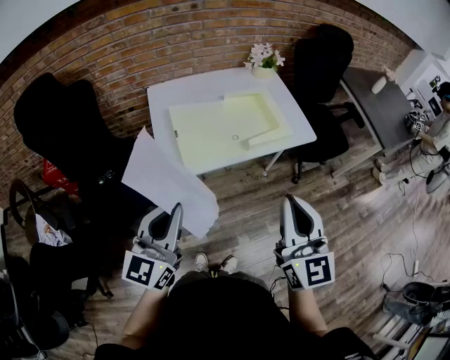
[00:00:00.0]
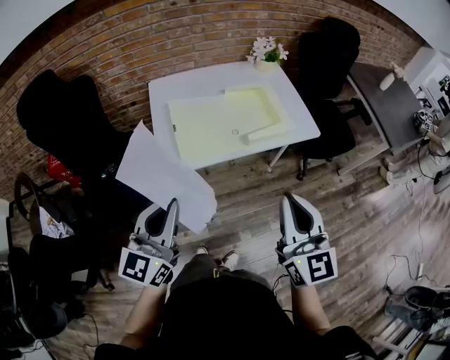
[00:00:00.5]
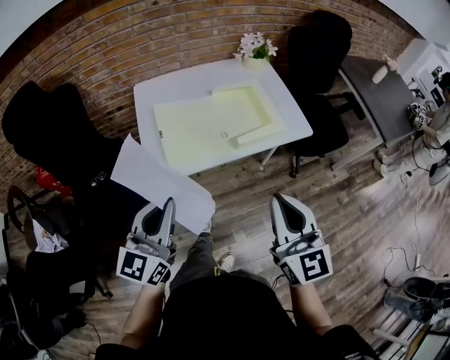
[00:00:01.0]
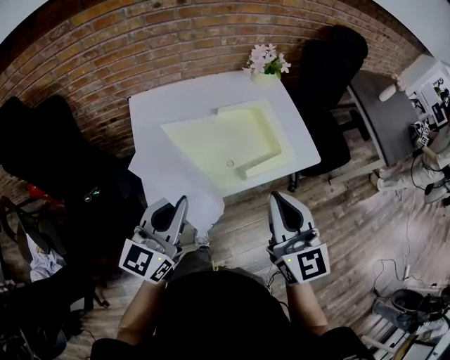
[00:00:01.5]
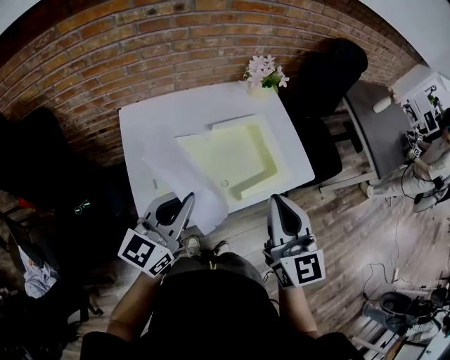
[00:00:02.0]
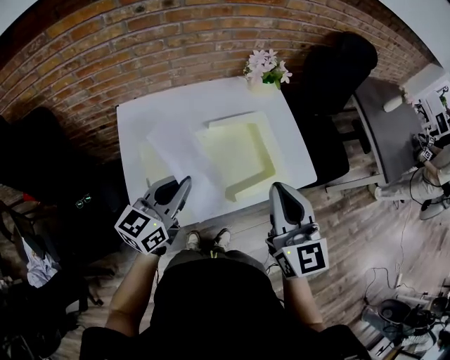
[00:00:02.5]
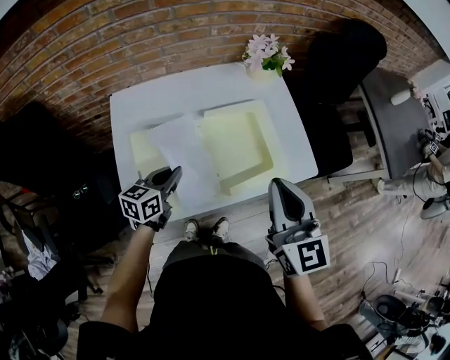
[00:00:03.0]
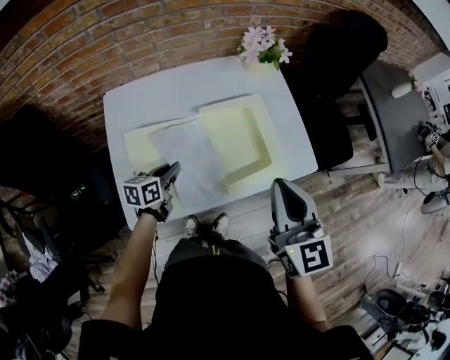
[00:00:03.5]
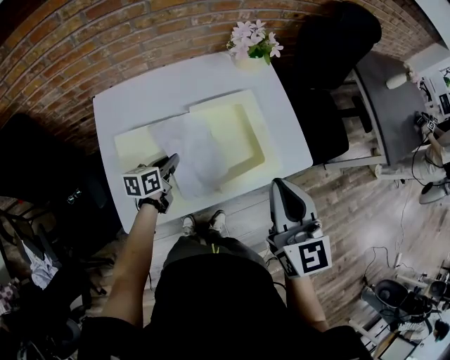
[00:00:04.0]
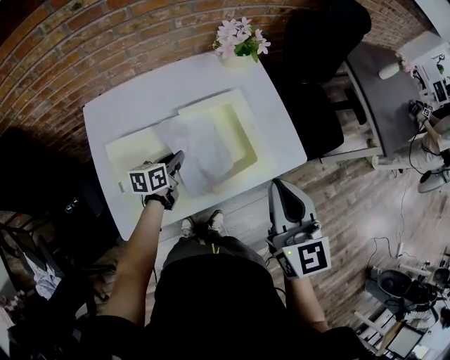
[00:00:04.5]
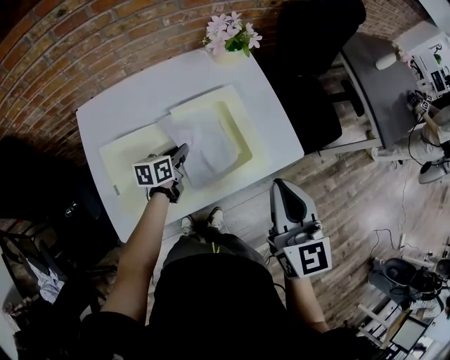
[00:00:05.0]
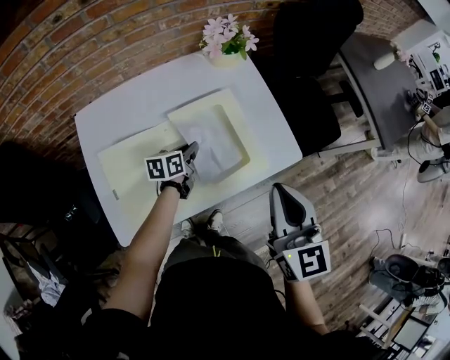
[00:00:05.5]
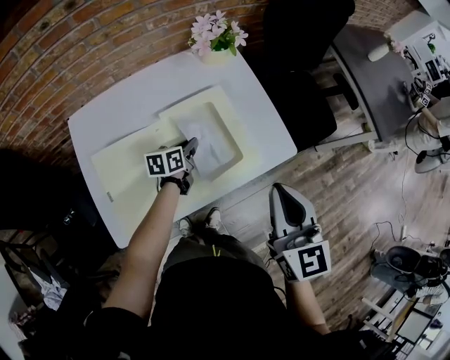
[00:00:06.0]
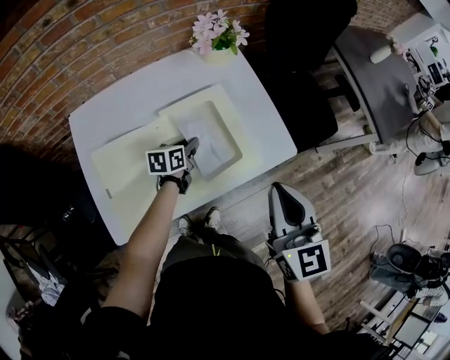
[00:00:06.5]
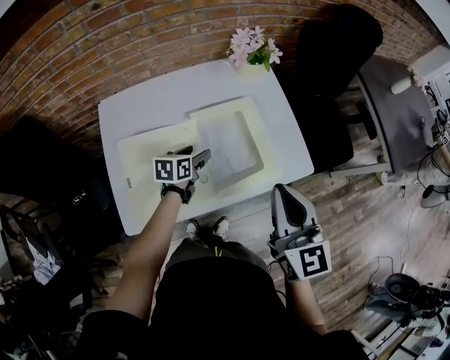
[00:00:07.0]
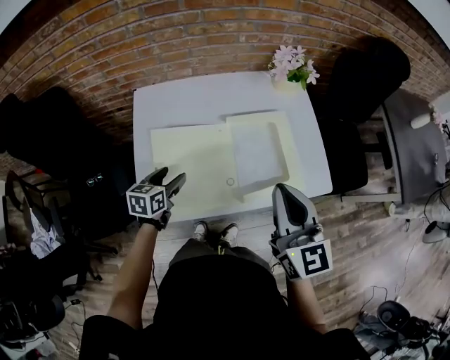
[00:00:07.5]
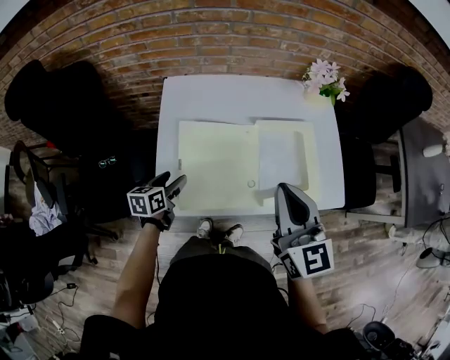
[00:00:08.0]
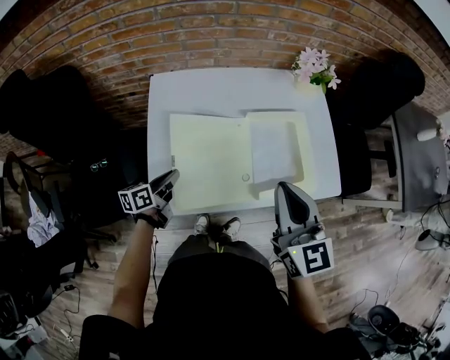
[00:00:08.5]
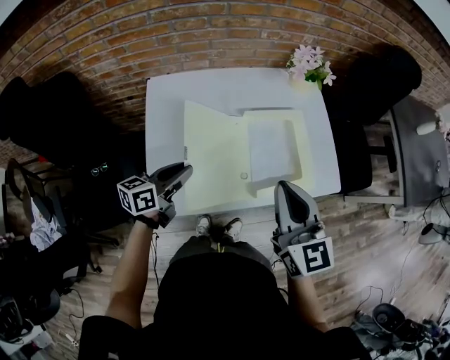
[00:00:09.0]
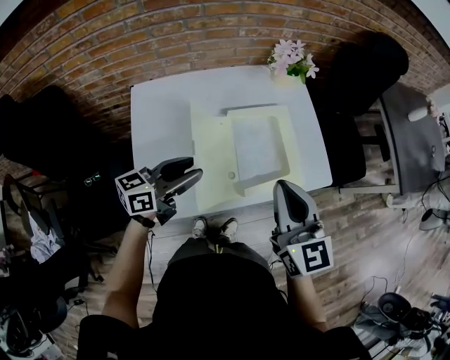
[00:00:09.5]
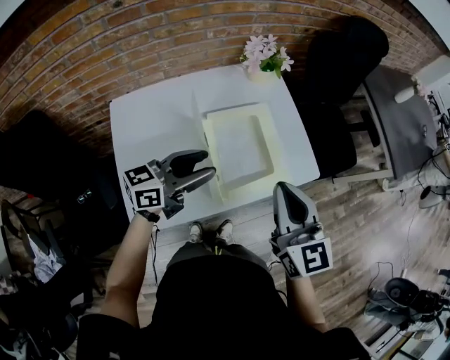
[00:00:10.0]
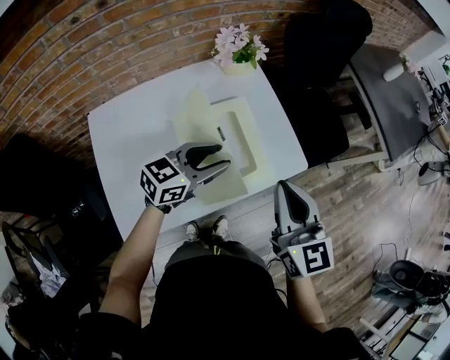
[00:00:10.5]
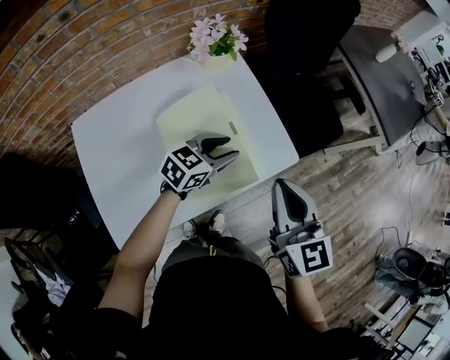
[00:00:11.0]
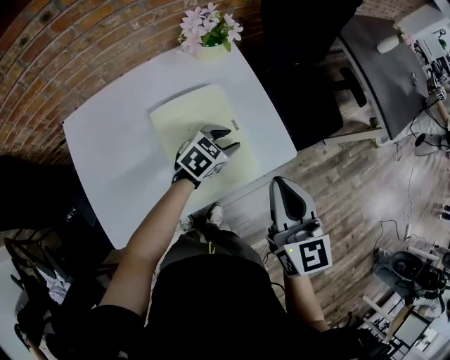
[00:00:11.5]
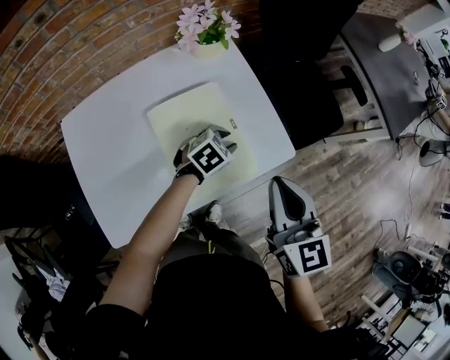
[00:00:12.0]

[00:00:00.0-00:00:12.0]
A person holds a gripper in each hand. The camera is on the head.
00:00:00.0 to 00:00:02.0: Both grippers travel together forward, roughly 30 cm.
00:00:02.0 to 00:00:04.0: The left gripper shifts roughly 30 cm downward and forward, and tips its fingers downward by roughly 30 degrees. The right gripper travels forward and to the right by approximately 15 cm.
00:00:04.0 to 00:00:06.0: The left gripper moves to the right and forward, roughly 15 cm. Meanwhile the right gripper goes roughly 5 cm to the right.
00:00:06.0 to 00:00:08.0: The right gripper changes place by approximately 20 cm, and changes its angle by approximately 30 degrees; the left gripper changes place by some 35 cm, rotates roughly 30 degrees, and opens its fingers.
00:00:08.0 to 00:00:10.0: The right gripper changes place by roughly 10 cm, while the left gripper moves about 35 cm, angles its fingers upward, by some 30 degrees, and closes, then opens again.
00:00:10.0 to 00:00:12.0: The left gripper heads downward, forward and to the right, covering about 35 cm, and tips its fingers downward by roughly 50 degrees, while the right gripper is displaced to the right, forward and downward by roughly 15 cm.

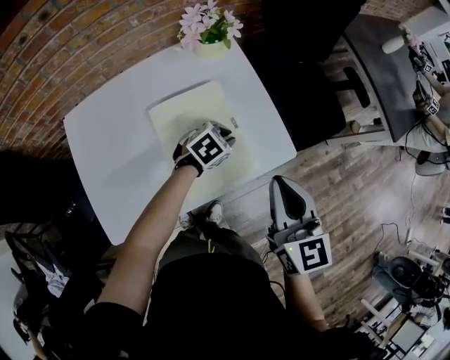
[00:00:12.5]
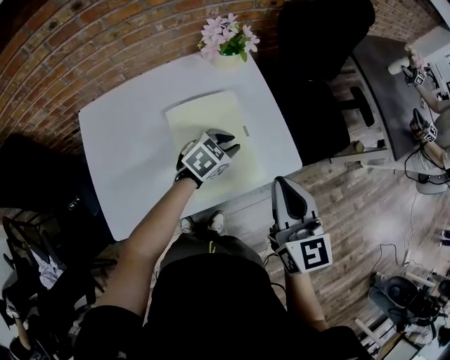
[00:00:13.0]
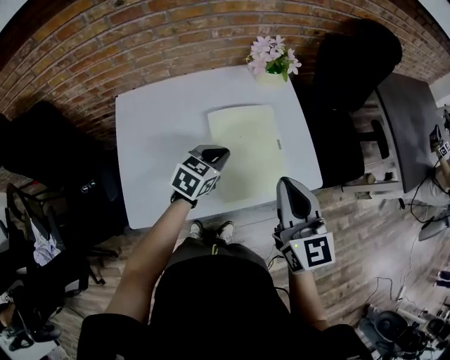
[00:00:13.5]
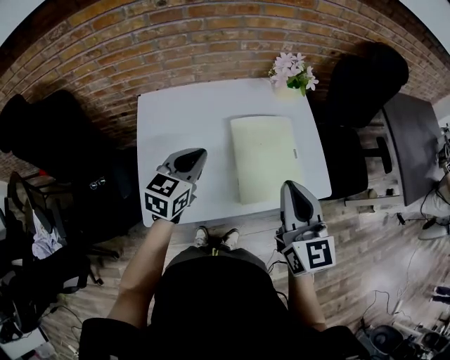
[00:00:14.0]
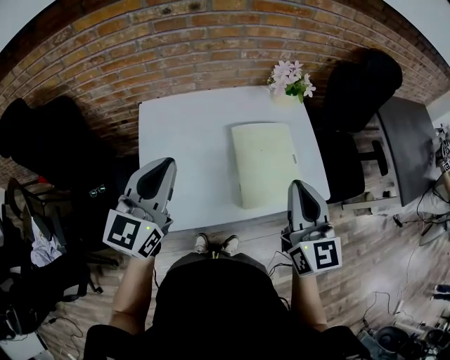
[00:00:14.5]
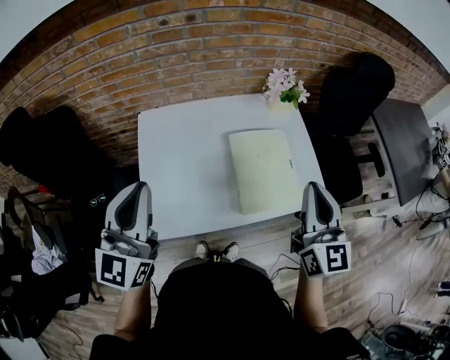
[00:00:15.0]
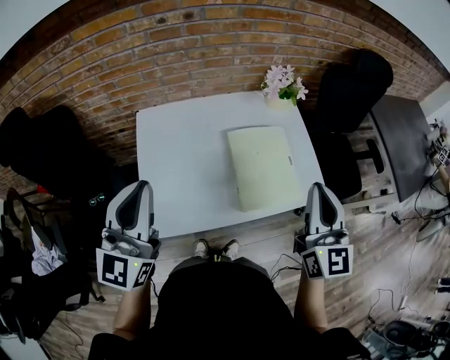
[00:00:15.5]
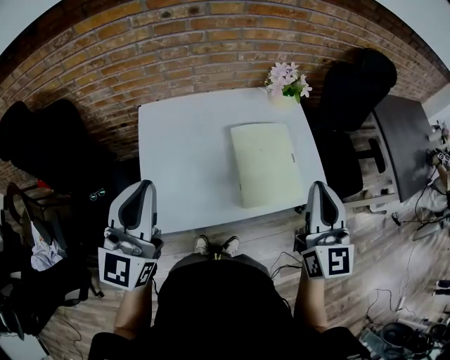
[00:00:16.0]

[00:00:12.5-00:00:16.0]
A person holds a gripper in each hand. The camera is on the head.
00:00:12.5 to 00:00:14.5: The right gripper changes place by approximately 20 cm; the left gripper ends up some 50 cm from where it was, and points its fingers about 50 degrees further upward.
00:00:14.5 to 00:00:16.0: The right gripper ends up some 5 cm from where it was, while the left gripper shifts approximately 5 cm backward.

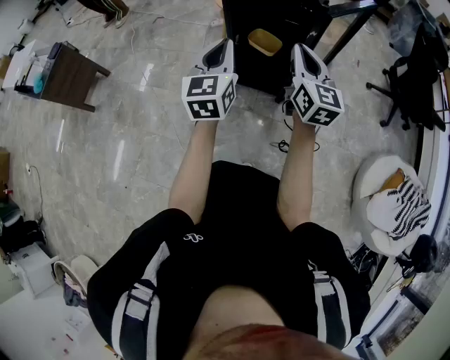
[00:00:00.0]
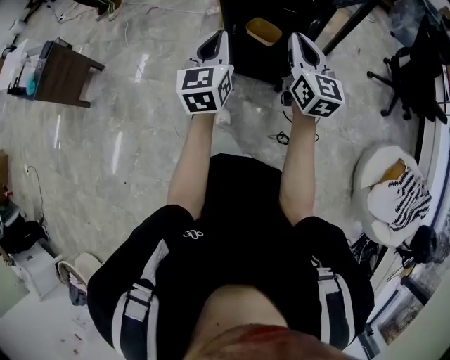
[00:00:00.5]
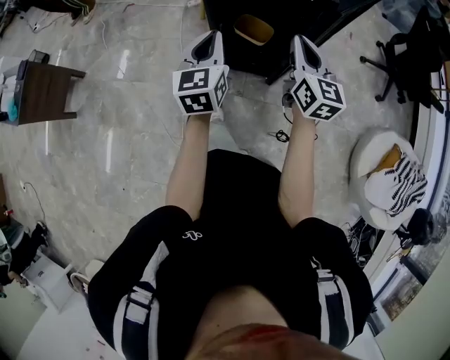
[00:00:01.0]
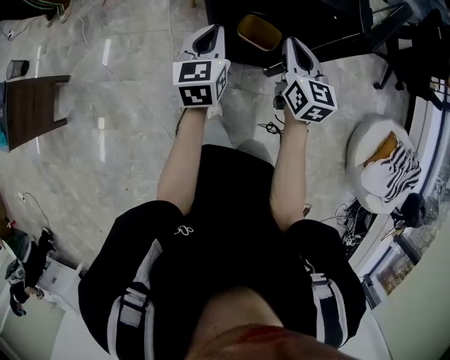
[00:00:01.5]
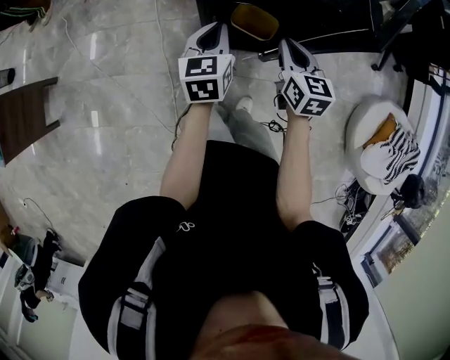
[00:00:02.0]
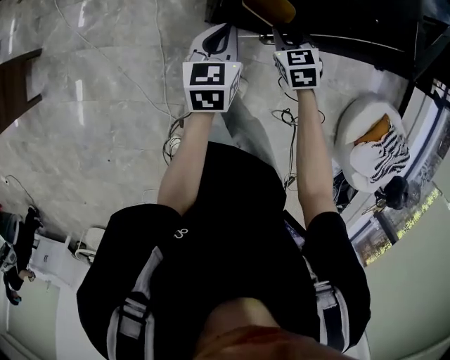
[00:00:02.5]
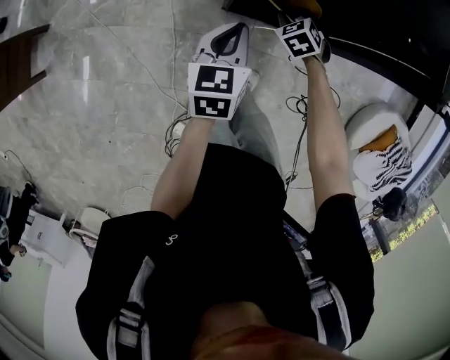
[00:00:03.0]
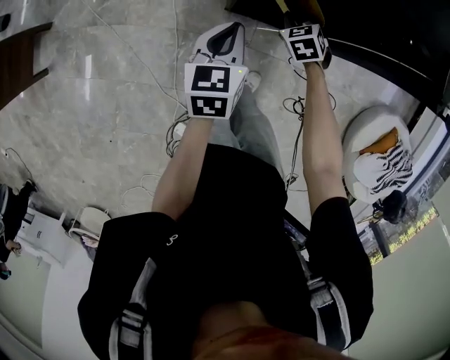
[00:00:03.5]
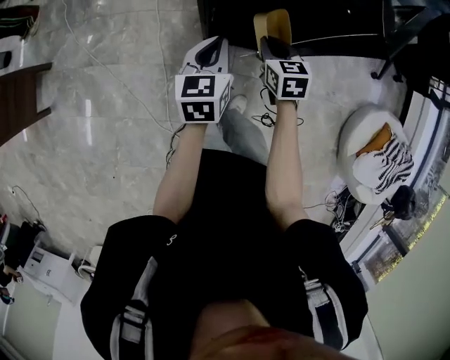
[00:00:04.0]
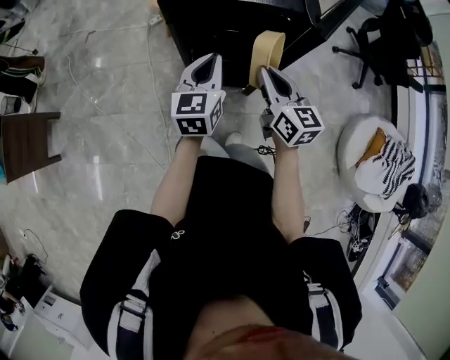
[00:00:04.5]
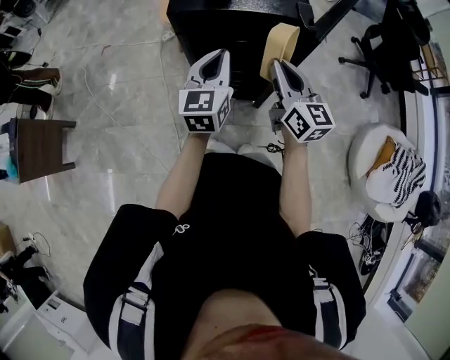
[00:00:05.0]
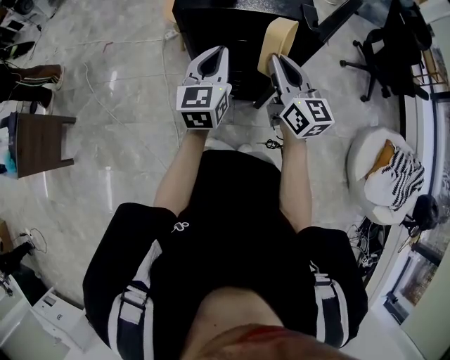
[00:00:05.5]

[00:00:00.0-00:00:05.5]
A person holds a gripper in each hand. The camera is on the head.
00:00:00.0 to 00:00:02.0: Both grippers travel together forward and downward, about 30 cm. The left gripper rotates about 30 degrees. Meanwhile the right gripper swivels some 30 degrees.
00:00:02.0 to 00:00:03.5: The right gripper goes roughly 25 cm downward, and points its fingers about 30 degrees further downward. The left gripper heads downward, covering some 10 cm.
00:00:03.5 to 00:00:05.5: The right gripper goes about 40 cm upward, and tilts its fingers approximately 60 degrees upward. Meanwhile the left gripper moves upward and to the right, approximately 25 cm, and swivels some 30 degrees.

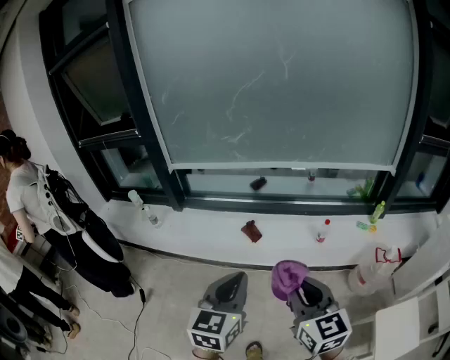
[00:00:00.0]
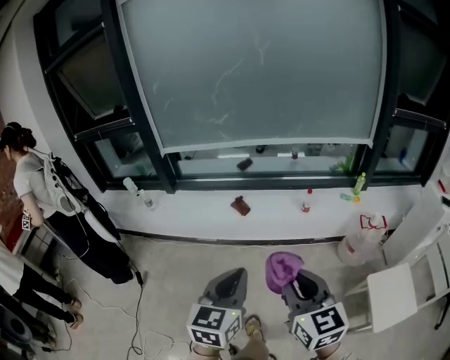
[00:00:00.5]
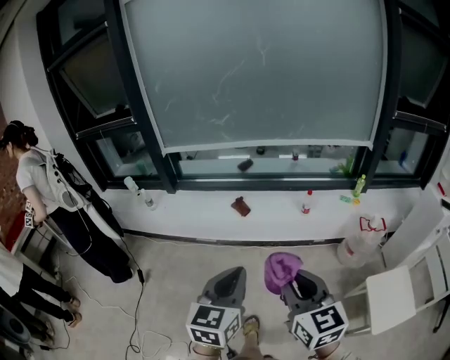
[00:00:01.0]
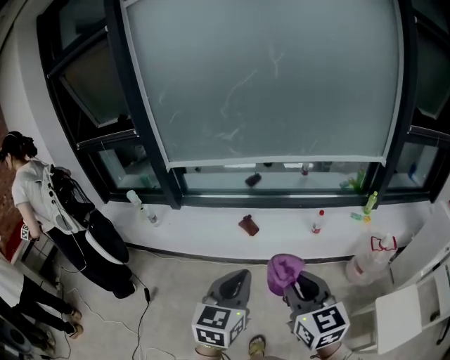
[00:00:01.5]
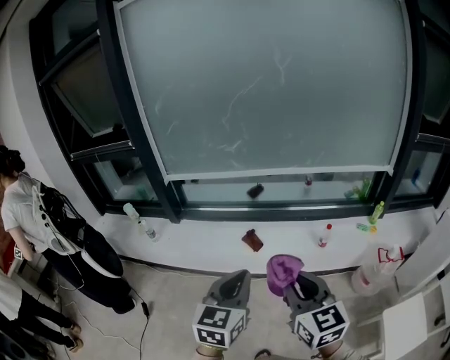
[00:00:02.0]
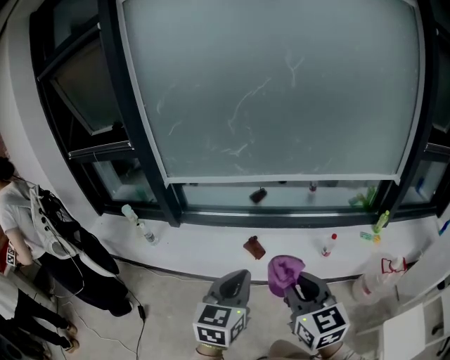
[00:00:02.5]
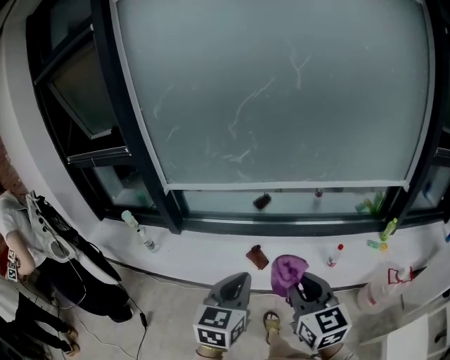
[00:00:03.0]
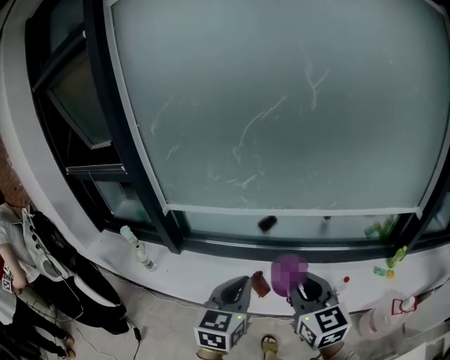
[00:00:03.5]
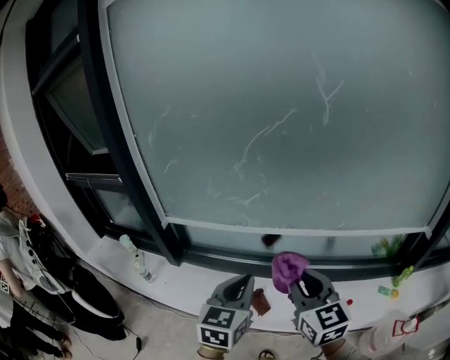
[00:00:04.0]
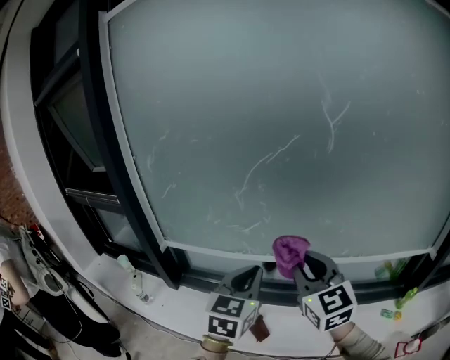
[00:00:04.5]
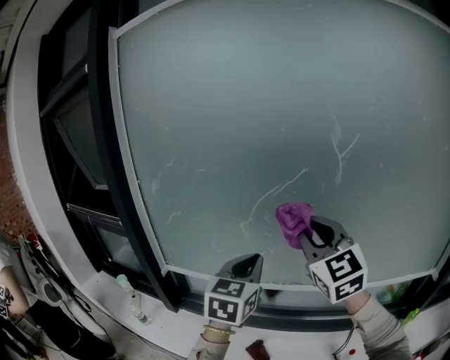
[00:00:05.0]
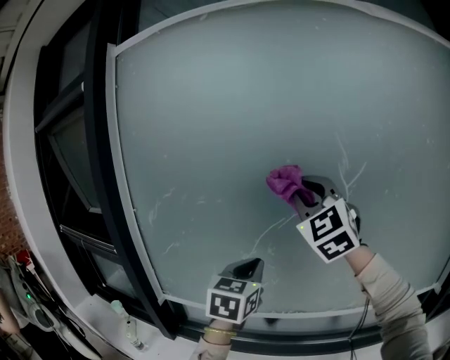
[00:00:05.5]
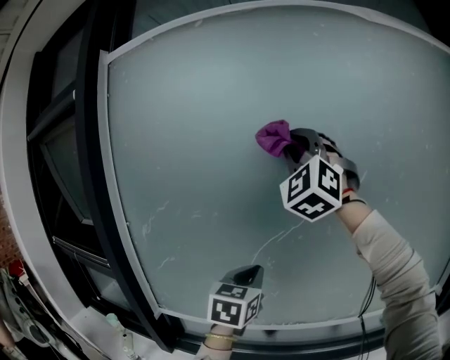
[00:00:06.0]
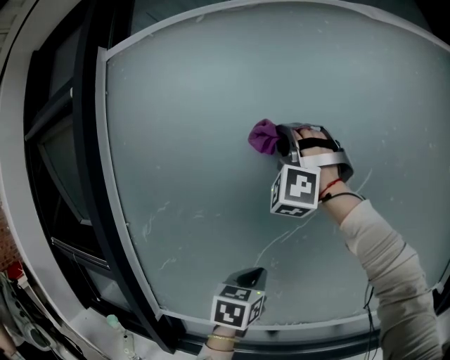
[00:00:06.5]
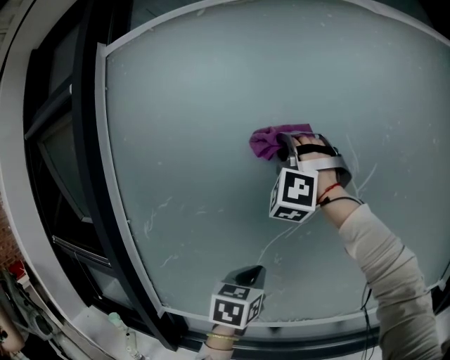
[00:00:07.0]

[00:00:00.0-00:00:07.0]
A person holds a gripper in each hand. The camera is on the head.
00:00:00.0 to 00:00:02.0: The left gripper moves approximately 15 cm backward and comes back; the right gripper moves to the left, about 5 cm, and goes backward and returns, approximately 15 cm each way.
00:00:02.0 to 00:00:03.5: Both grippers travel together forward, about 30 cm.
00:00:03.5 to 00:00:05.0: Both grippers travel together forward and upward, about 35 cm. The right gripper rotates roughly 30 degrees.
00:00:05.0 to 00:00:07.0: The right gripper shifts roughly 30 cm upward, forward and to the left, and rolls counterclockwise, seen from behind, by about 70 degrees, while the left gripper goes about 10 cm forward.
